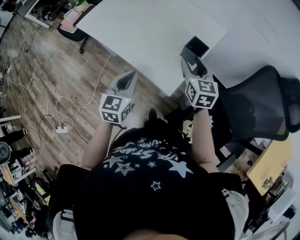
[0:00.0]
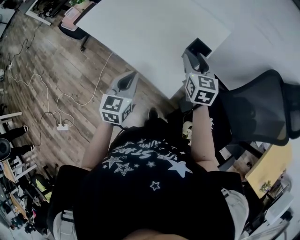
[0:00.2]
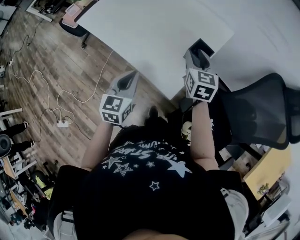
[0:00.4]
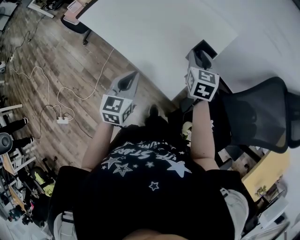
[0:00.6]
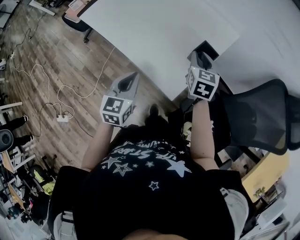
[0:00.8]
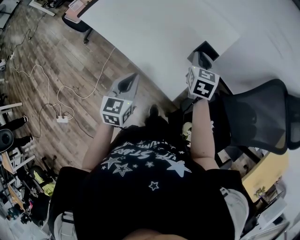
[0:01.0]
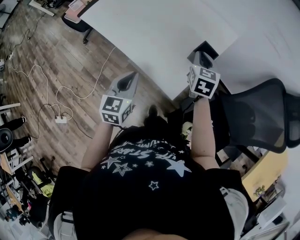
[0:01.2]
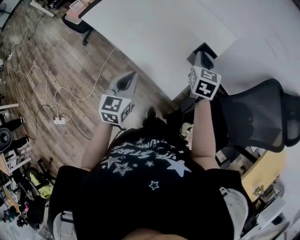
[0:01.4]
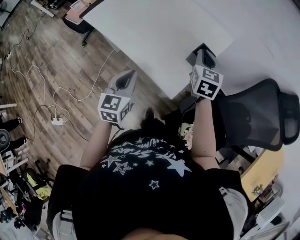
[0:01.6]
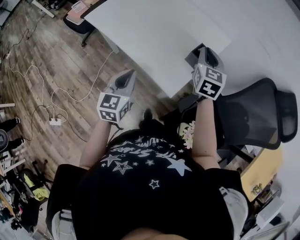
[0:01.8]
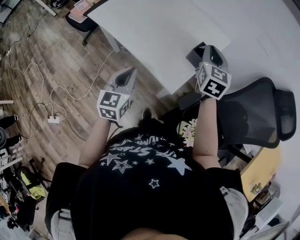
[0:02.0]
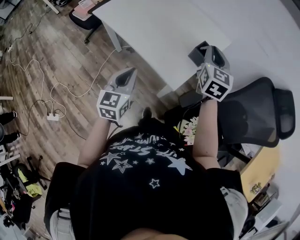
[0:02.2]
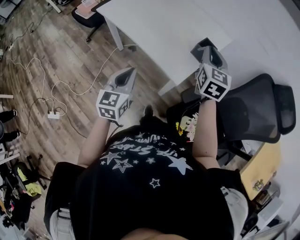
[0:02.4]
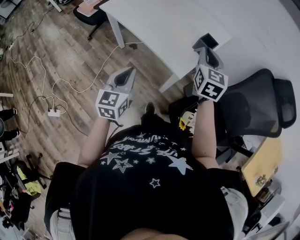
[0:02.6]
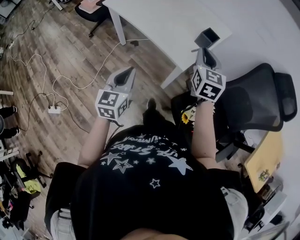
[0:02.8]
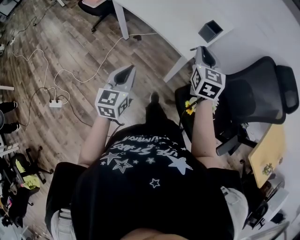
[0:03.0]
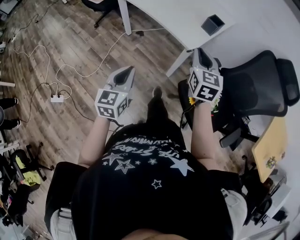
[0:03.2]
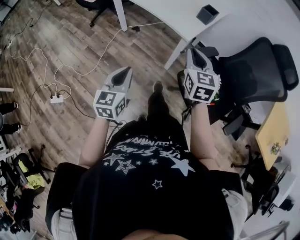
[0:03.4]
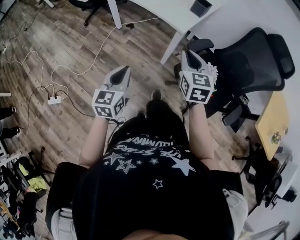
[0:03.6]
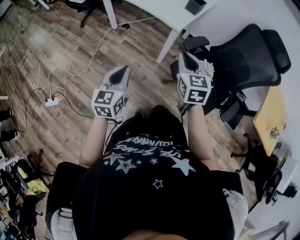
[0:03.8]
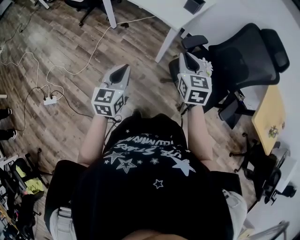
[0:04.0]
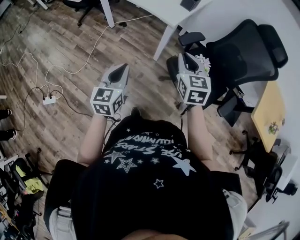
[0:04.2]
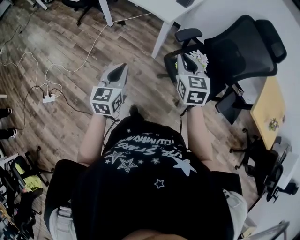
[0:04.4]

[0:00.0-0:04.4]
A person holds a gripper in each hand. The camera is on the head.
0:00.0 to 0:01.4: The right gripper travels forward by about 5 cm, and closes its fingers.
0:01.4 to 0:03.0: Both grippers move backward, about 25 cm.
0:03.0 to 0:04.4: Both grippers move backward, some 25 cm.

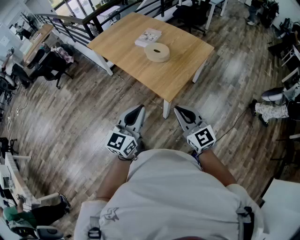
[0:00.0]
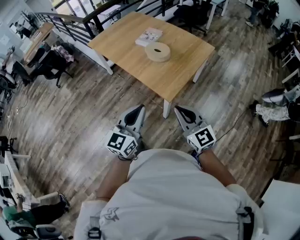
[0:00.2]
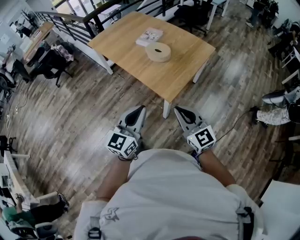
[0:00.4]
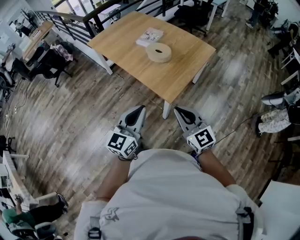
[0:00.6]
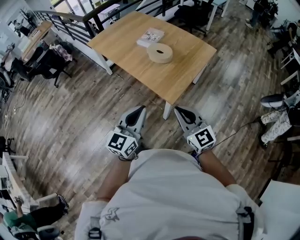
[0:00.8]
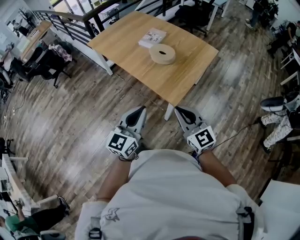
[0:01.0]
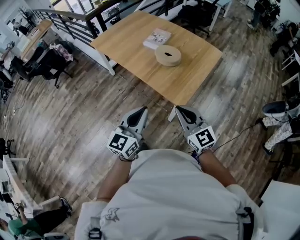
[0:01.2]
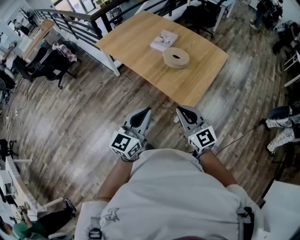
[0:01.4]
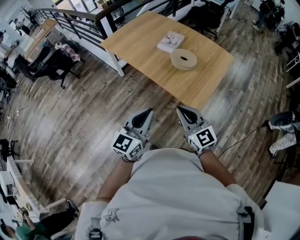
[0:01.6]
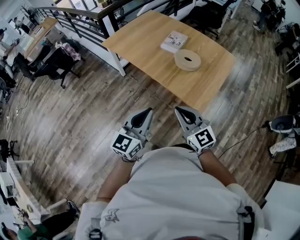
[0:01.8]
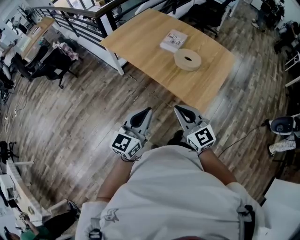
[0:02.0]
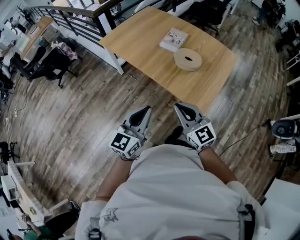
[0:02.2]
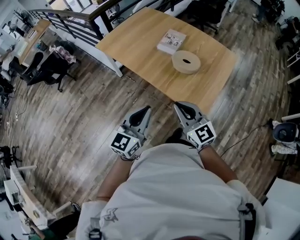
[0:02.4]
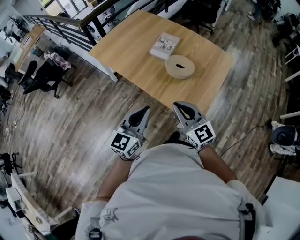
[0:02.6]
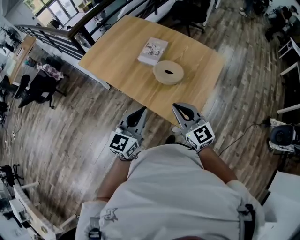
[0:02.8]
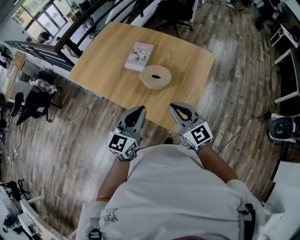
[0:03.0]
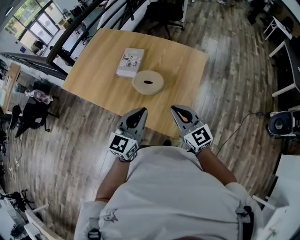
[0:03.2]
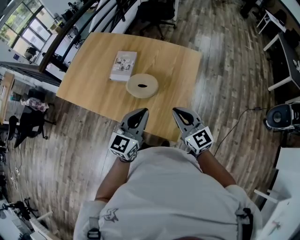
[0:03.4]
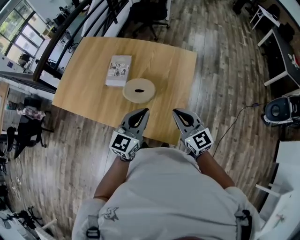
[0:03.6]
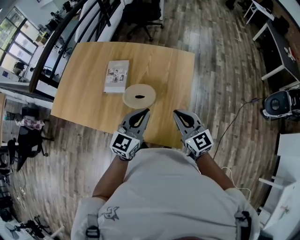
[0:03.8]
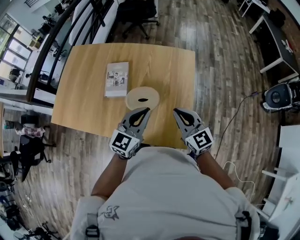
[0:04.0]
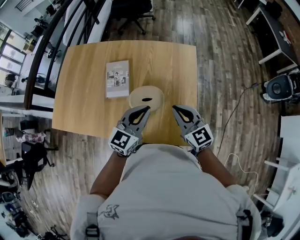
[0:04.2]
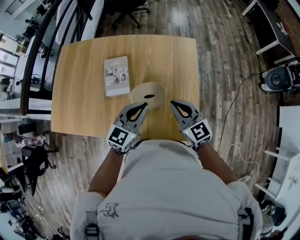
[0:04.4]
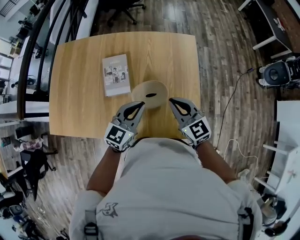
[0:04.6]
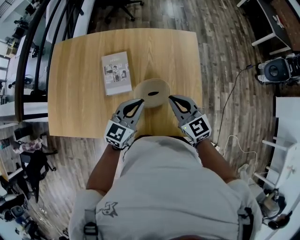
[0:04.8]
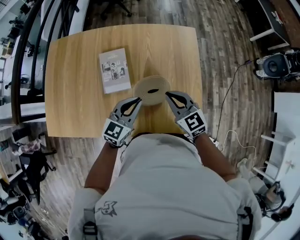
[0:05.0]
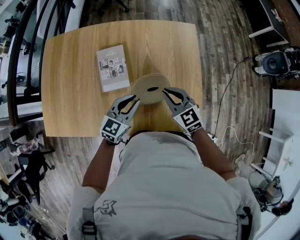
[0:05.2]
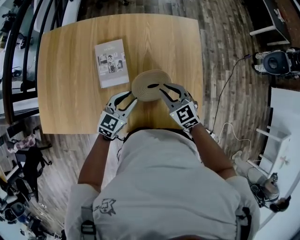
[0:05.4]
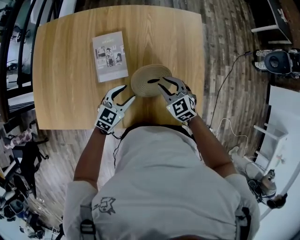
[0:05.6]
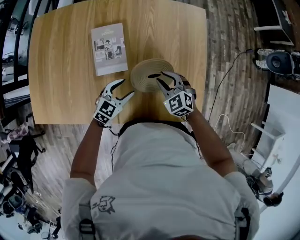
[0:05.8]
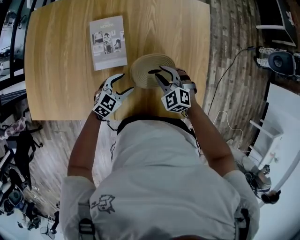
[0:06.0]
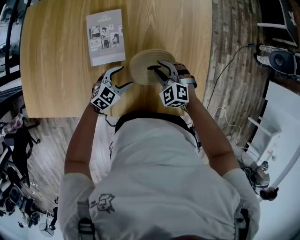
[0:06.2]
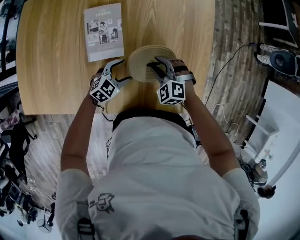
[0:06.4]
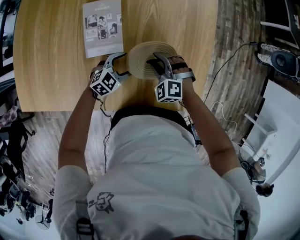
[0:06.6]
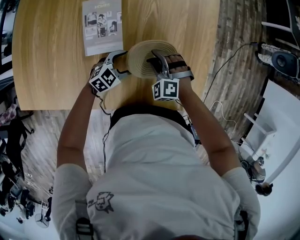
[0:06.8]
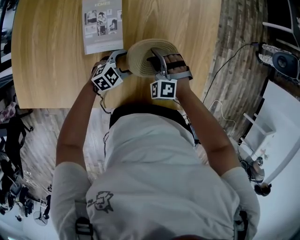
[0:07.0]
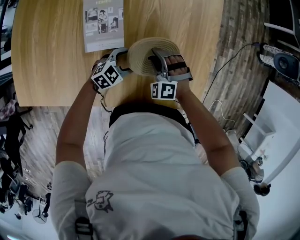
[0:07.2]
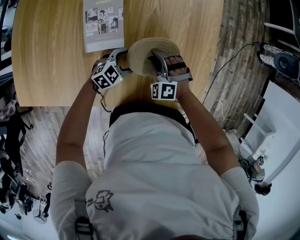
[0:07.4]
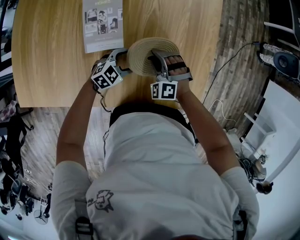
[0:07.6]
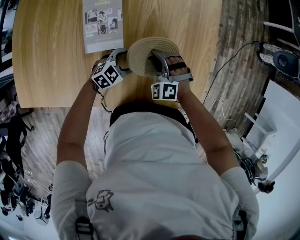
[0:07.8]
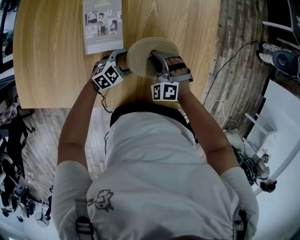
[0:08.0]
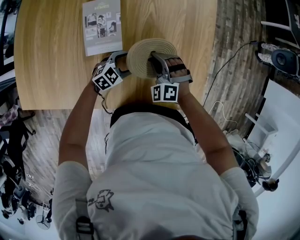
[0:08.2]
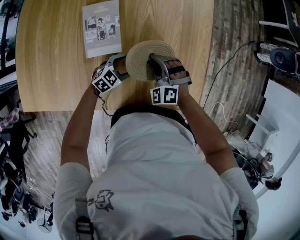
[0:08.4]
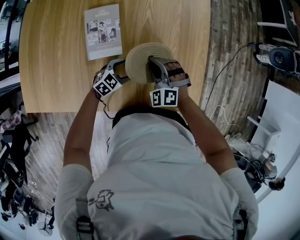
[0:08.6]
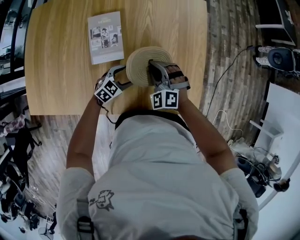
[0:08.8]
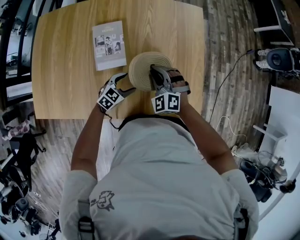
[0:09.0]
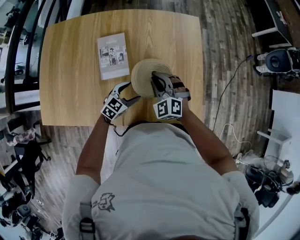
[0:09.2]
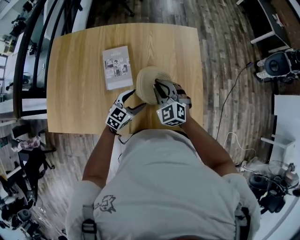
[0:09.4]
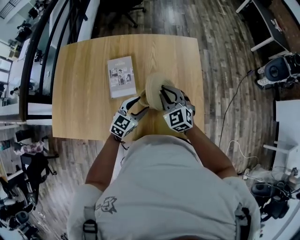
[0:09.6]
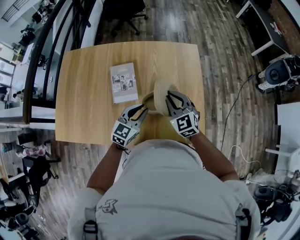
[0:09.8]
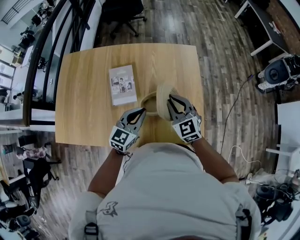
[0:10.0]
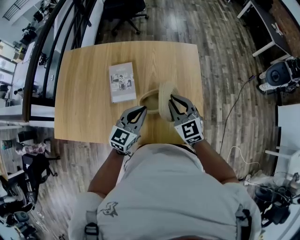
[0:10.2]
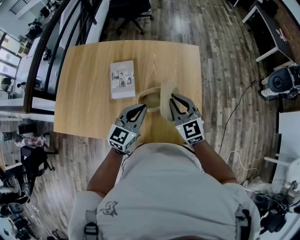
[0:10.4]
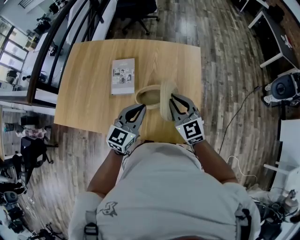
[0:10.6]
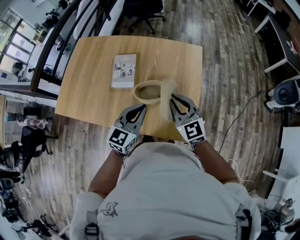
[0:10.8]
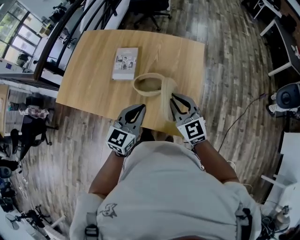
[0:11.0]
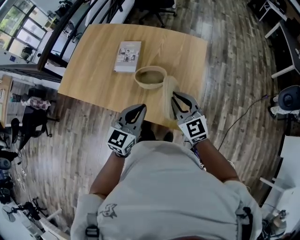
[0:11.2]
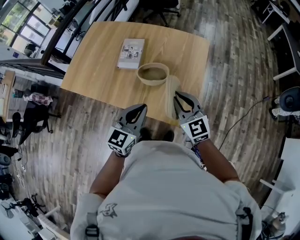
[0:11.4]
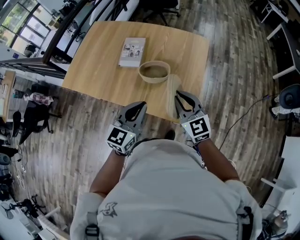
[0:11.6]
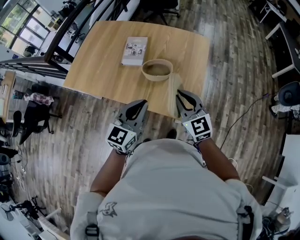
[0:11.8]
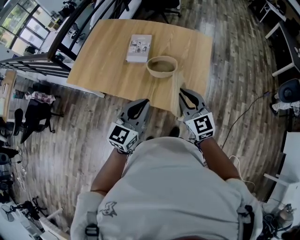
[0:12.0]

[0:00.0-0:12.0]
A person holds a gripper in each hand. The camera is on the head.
0:00.0 to 0:01.6: Both grippers travel together to the left and forward, approximately 20 cm.
0:01.6 to 0:03.0: The grippers both shift forward and to the right by approximately 25 cm.
0:03.0 to 0:04.4: The left gripper changes place by roughly 25 cm, and swivels some 30 degrees; the right gripper shifts by about 20 cm, and rotates about 30 degrees.
0:04.4 to 0:06.0: The left gripper is displaced downward by about 25 cm, rotates about 30 degrees, and opens its fingers, while the right gripper heads downward and to the left, covering approximately 25 cm, tips its fingers downward by some 30 degrees, and opens.
0:06.0 to 0:07.6: The right gripper moves some 5 cm, and rotates roughly 30 degrees. Meanwhile the left gripper goes some 5 cm downward.
0:07.6 to 0:09.0: The left gripper is displaced upward by some 5 cm. Meanwhile the right gripper is displaced upward by roughly 10 cm.
0:09.0 to 0:10.4: The left gripper moves upward, roughly 25 cm, swivels about 30 degrees, and closes, while the right gripper travels upward and to the right by approximately 20 cm, and turns by some 40 degrees.
0:10.4 to 0:12.0: The grippers both shift backward by some 25 cm.

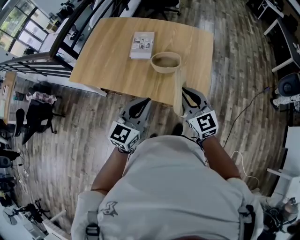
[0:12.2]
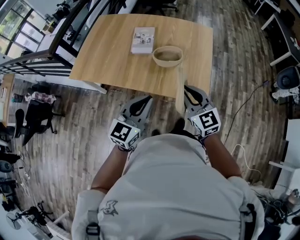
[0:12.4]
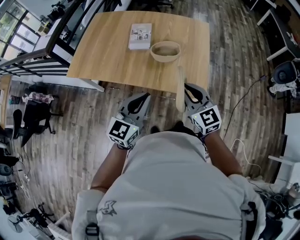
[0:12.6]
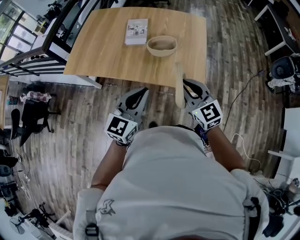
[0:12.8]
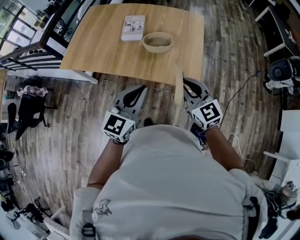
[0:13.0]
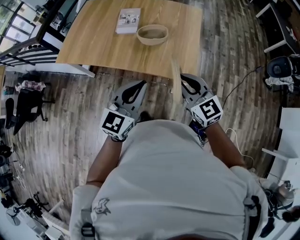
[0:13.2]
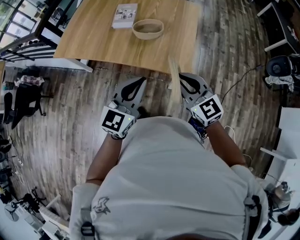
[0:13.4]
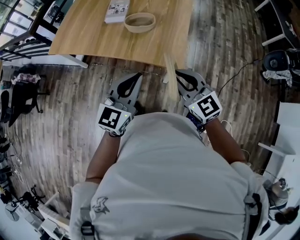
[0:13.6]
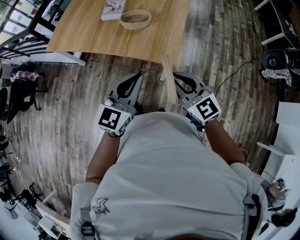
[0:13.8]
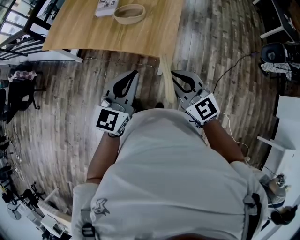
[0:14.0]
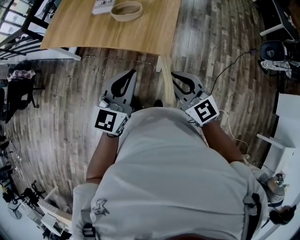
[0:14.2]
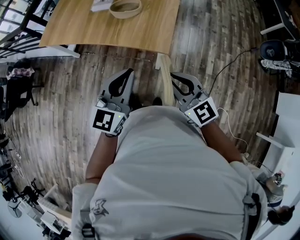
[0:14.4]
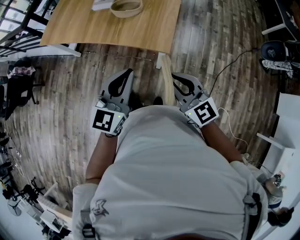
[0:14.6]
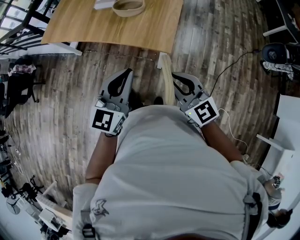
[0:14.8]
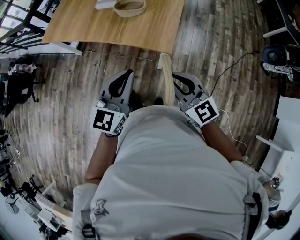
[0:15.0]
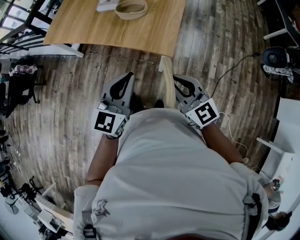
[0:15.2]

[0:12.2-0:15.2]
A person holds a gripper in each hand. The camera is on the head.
0:12.2 to 0:13.8: Both grippers move backward and to the right, some 20 cm.
0:13.8 to 0:15.2: The right gripper moves about 5 cm.

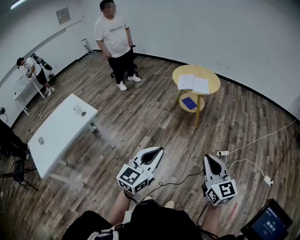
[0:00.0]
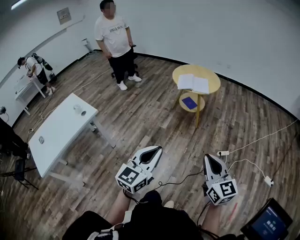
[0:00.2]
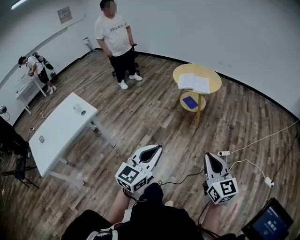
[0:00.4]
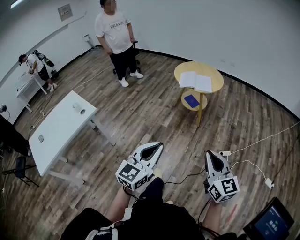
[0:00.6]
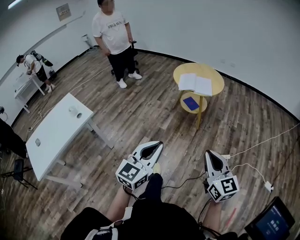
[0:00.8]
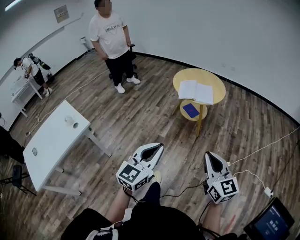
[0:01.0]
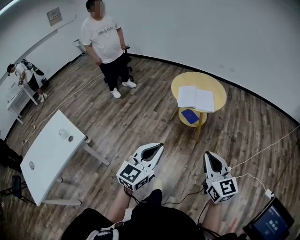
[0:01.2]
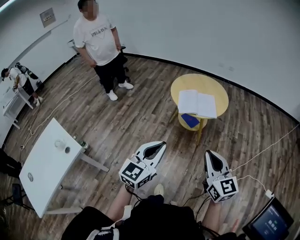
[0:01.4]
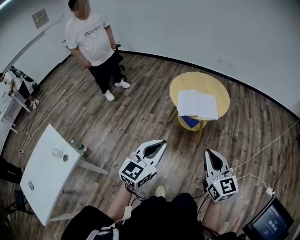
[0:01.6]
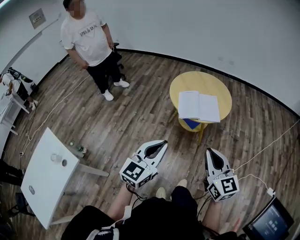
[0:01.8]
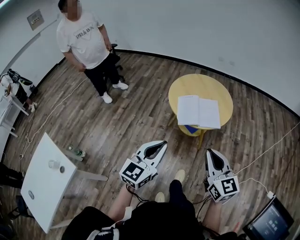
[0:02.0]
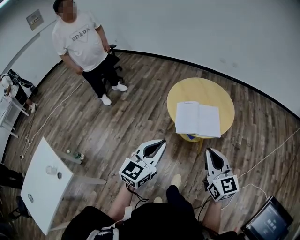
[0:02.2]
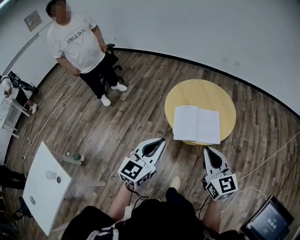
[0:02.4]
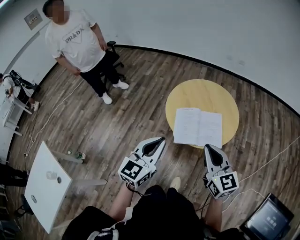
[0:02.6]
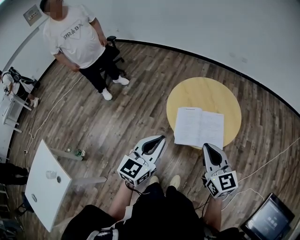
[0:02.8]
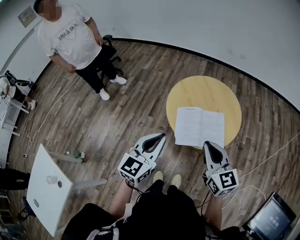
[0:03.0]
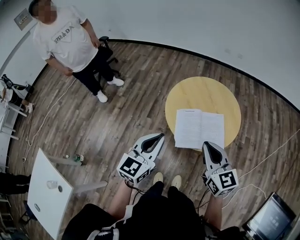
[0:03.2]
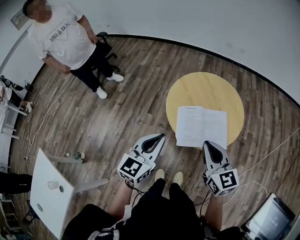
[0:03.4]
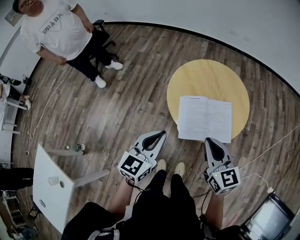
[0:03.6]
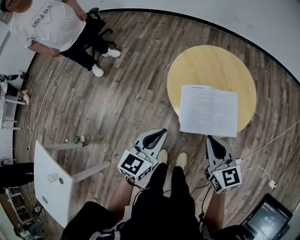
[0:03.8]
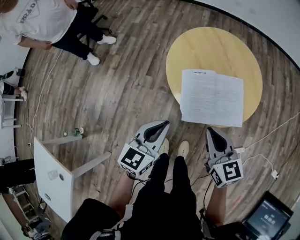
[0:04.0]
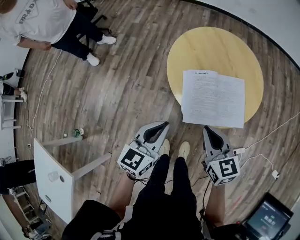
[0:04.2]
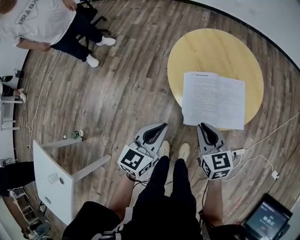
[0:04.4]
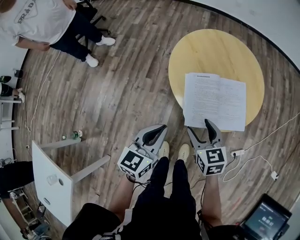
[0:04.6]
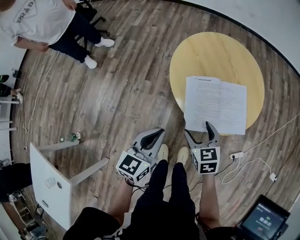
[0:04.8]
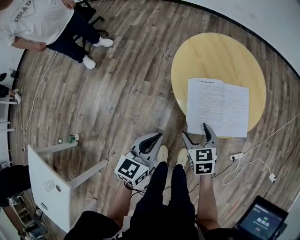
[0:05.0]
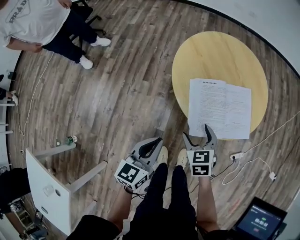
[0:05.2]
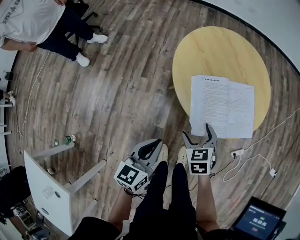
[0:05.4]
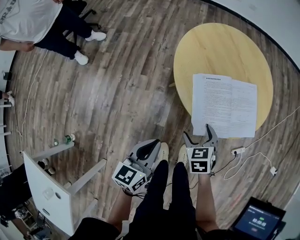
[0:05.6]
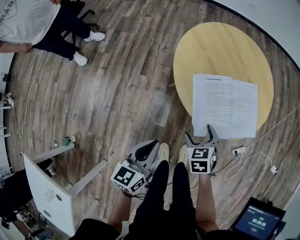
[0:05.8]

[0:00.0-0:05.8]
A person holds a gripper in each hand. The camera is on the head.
0:00.0 to 0:01.4: The two grippers go roughly 35 cm forward.
0:01.4 to 0:02.8: The grippers both shift forward by approximately 40 cm.
0:02.8 to 0:04.4: Both grippers move downward, roughly 20 cm. The right gripper rotates about 20 degrees.
0:04.4 to 0:05.8: The left gripper shifts about 15 cm downward and to the left. The right gripper moves downward, about 15 cm, changes its angle by approximately 30 degrees, and opens up.
